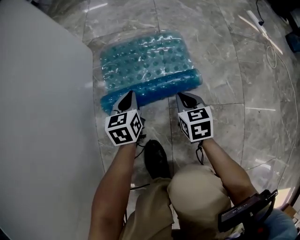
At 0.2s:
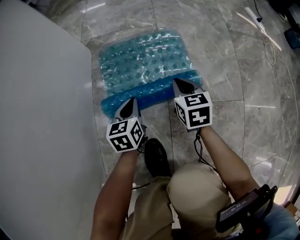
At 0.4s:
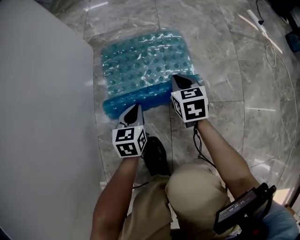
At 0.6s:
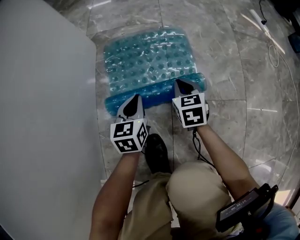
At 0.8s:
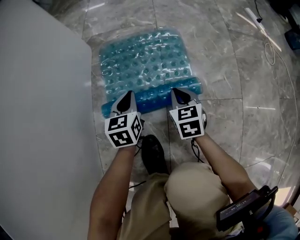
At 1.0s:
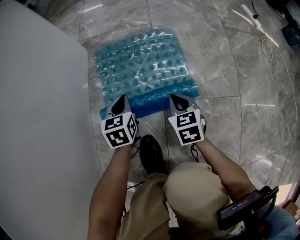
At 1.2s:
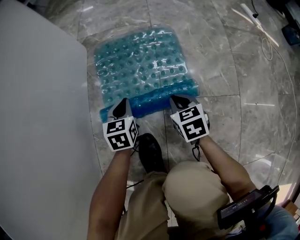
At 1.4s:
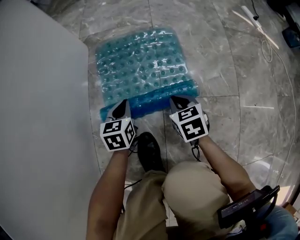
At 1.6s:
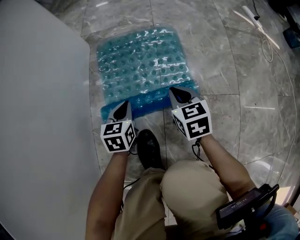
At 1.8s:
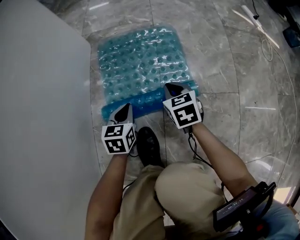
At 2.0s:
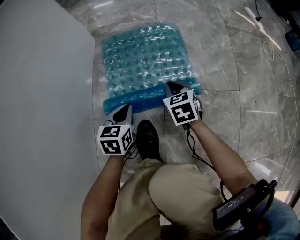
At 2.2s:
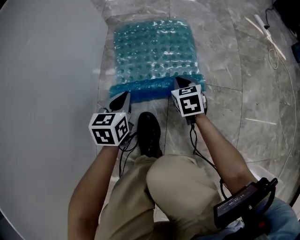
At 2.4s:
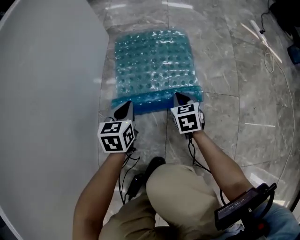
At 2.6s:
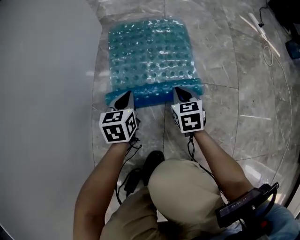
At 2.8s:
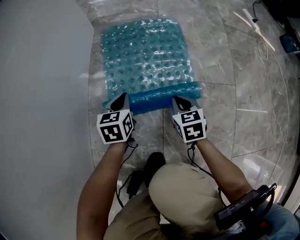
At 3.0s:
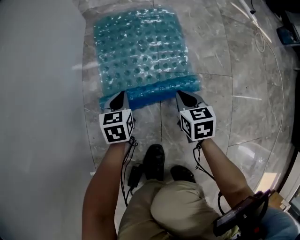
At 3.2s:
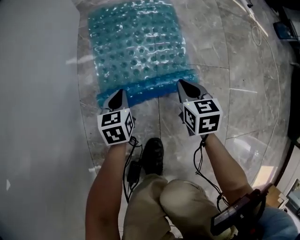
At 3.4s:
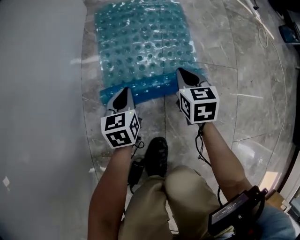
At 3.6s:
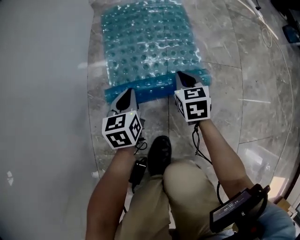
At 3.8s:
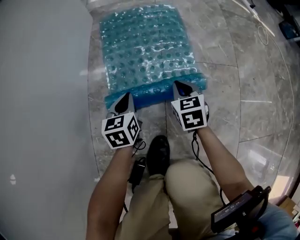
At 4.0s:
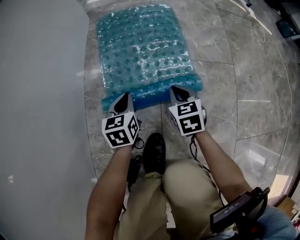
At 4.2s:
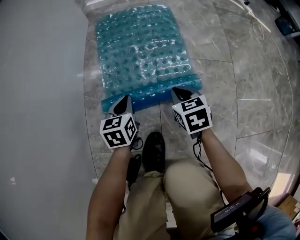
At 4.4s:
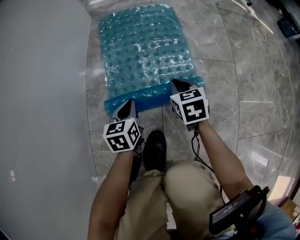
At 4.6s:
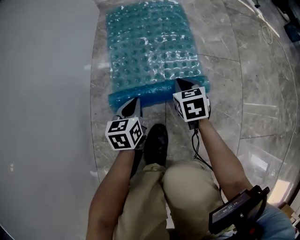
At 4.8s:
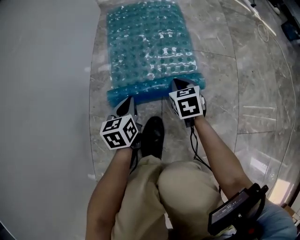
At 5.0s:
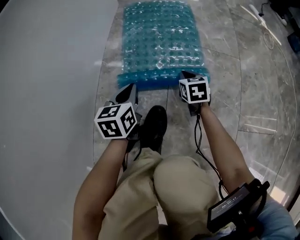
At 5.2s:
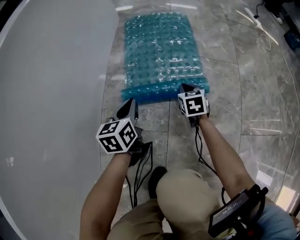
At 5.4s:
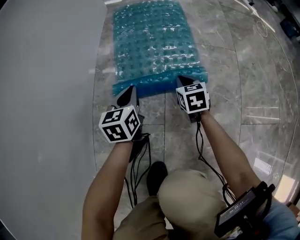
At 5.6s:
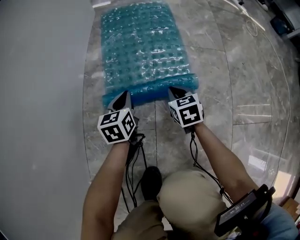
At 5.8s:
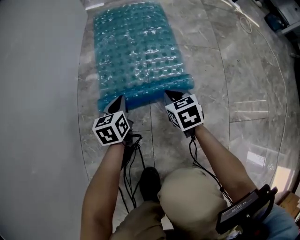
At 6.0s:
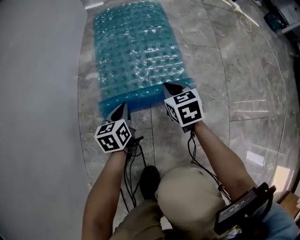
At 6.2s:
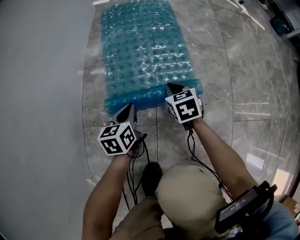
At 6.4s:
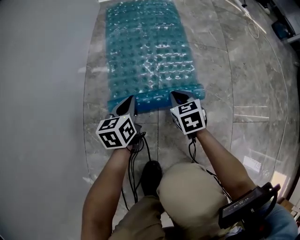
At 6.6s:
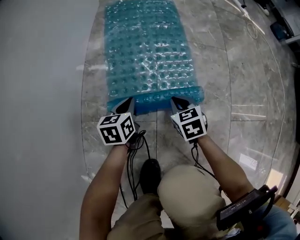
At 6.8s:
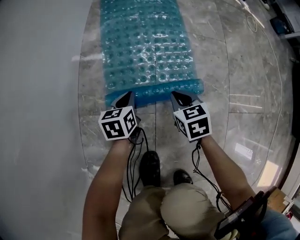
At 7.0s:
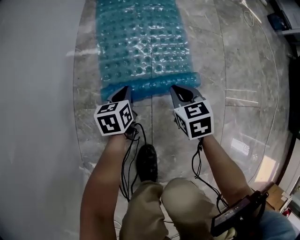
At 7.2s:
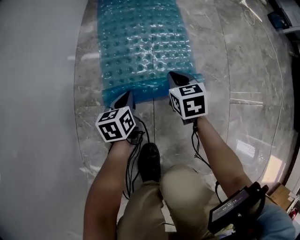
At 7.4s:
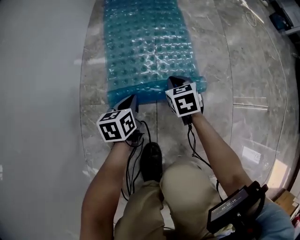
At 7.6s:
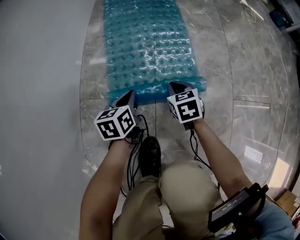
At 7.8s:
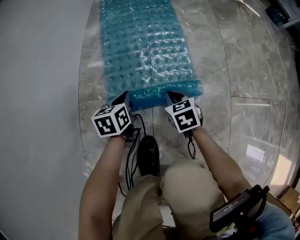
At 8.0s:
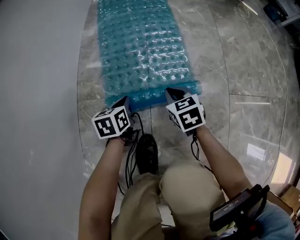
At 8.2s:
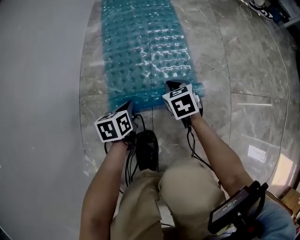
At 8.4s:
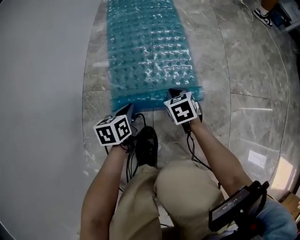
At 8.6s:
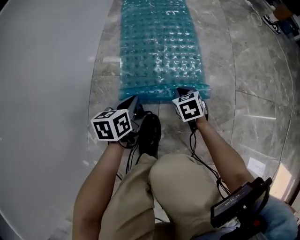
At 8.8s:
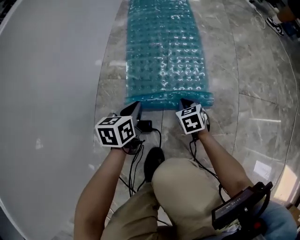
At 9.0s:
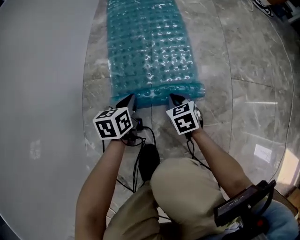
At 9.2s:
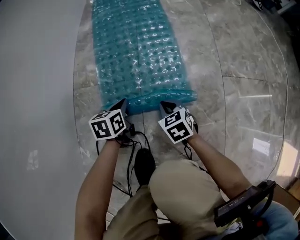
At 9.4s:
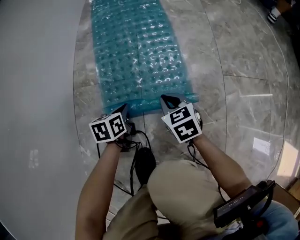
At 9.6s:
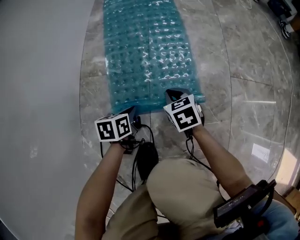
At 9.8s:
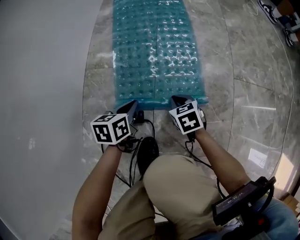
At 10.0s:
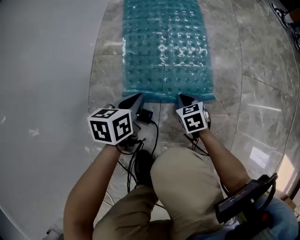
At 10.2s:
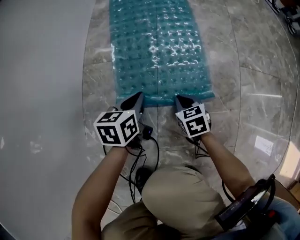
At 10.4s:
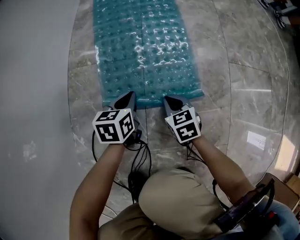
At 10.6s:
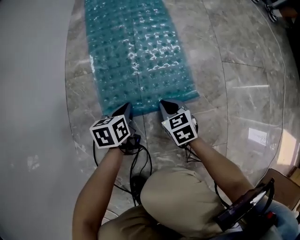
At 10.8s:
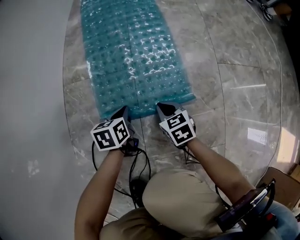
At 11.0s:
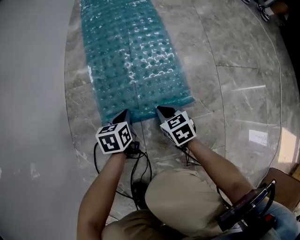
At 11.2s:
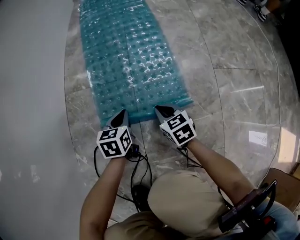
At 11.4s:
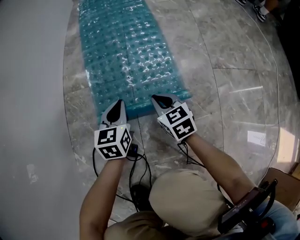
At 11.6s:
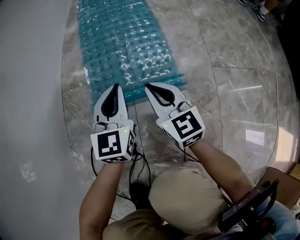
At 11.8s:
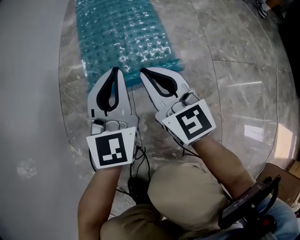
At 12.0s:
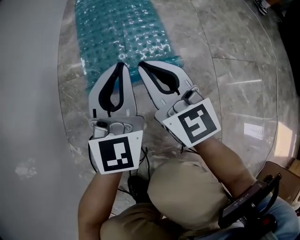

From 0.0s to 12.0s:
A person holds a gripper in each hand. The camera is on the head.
From 0.0s to 1.6s: The left gripper goes forward and backward, approximately 10 cm each way, reversing 2 times; the right gripper moves about 5 cm forward and comes back.
From 1.6s to 3.0s: The right gripper shifts approximately 10 cm backward, while the left gripper travels backward by approximately 5 cm.
From 3.0s to 4.4s: The left gripper travels backward by roughly 10 cm.
From 4.4s to 6.0s: The two grippers go approximately 10 cm backward.
From 6.0s to 7.6s: The grippers both shift backward by about 10 cm.
From 7.6s to 9.0s: Both grippers move backward, some 15 cm.
From 9.0s to 10.4s: The left gripper swings up and down, roughly 10 cm each way, with 2 reversals, while the right gripper goes roughly 5 cm backward.
From 10.4s to 12.0s: The grippers both shift upward by approximately 25 cm. The left gripper angles its fingers upward, by about 40 degrees. Meanwhile the right gripper points its fingers about 50 degrees further upward.

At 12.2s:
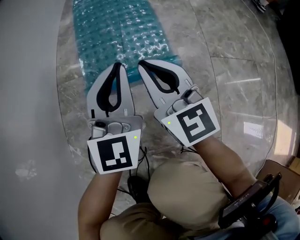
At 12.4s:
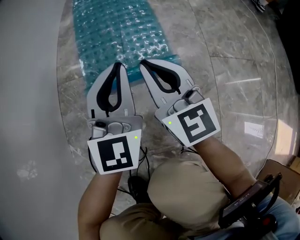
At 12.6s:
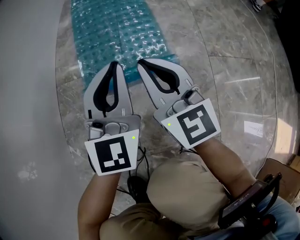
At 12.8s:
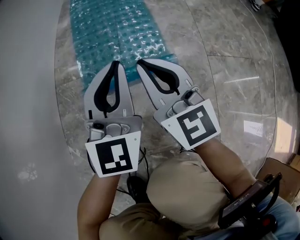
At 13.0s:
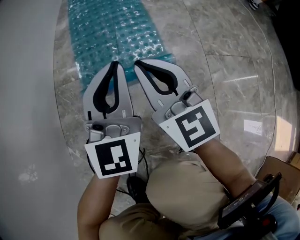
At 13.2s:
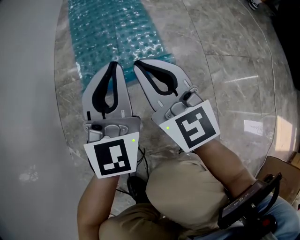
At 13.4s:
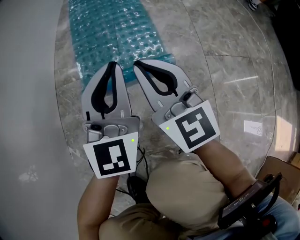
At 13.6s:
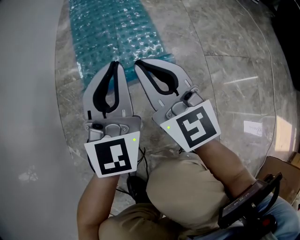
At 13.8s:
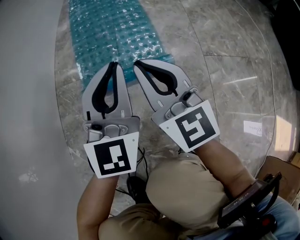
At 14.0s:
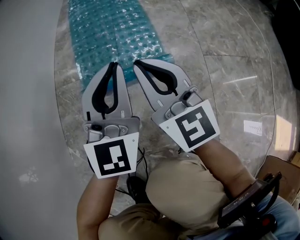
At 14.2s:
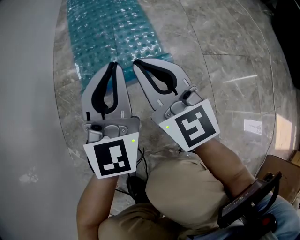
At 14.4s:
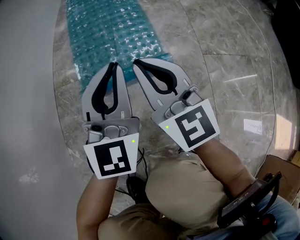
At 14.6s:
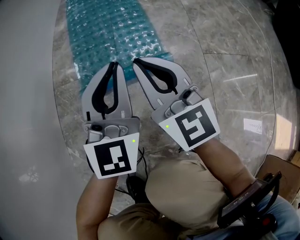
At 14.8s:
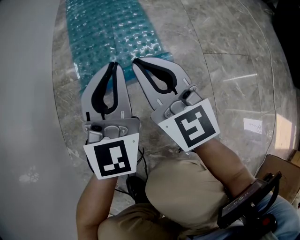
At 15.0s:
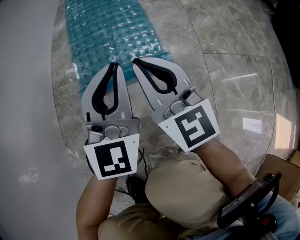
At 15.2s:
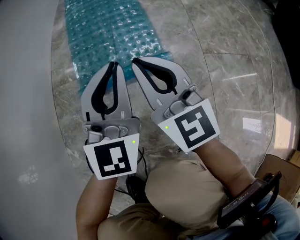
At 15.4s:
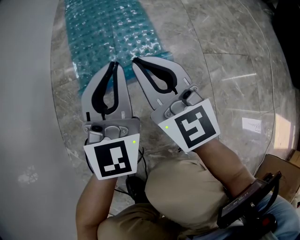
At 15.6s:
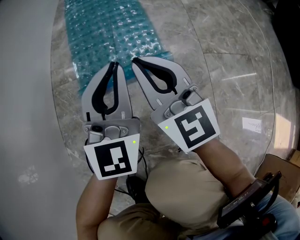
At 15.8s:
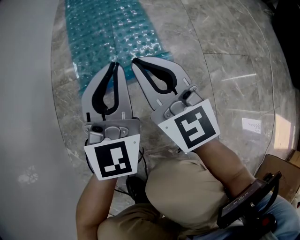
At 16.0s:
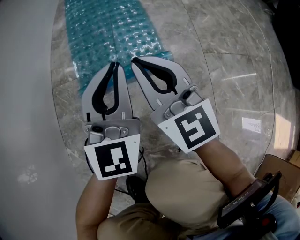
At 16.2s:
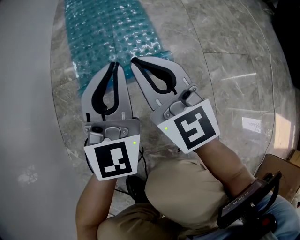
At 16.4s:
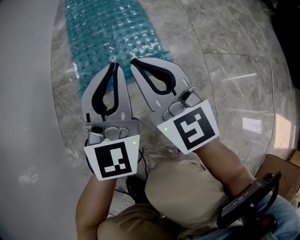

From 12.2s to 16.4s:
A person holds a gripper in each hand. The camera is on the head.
From 12.2s to 13.6s: The grippers make only small movements.
From 13.6s to 16.4s: The two grippers keep their place.

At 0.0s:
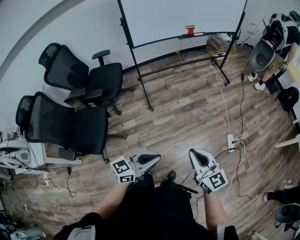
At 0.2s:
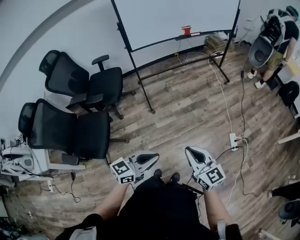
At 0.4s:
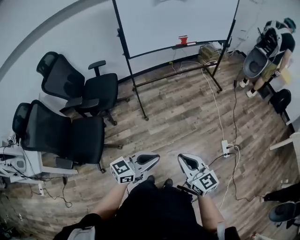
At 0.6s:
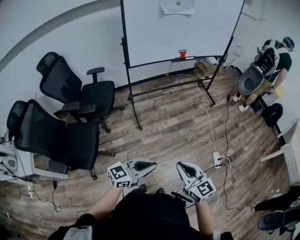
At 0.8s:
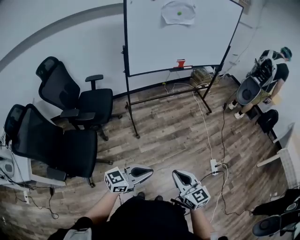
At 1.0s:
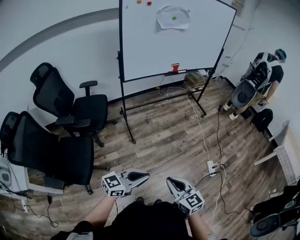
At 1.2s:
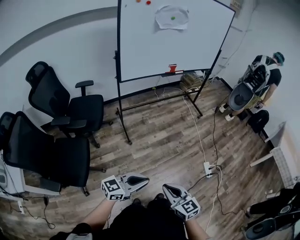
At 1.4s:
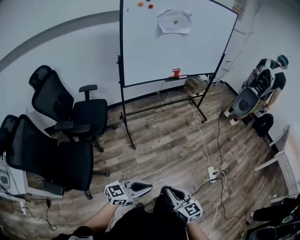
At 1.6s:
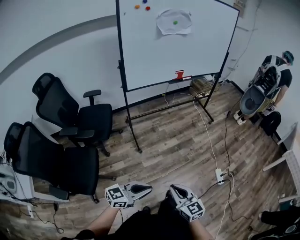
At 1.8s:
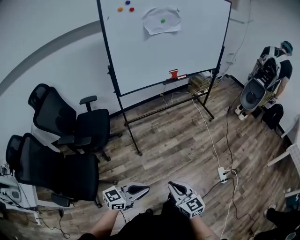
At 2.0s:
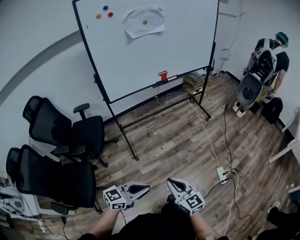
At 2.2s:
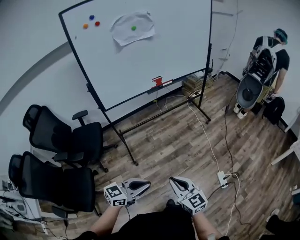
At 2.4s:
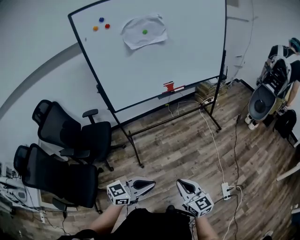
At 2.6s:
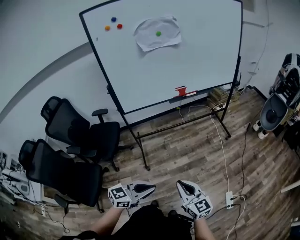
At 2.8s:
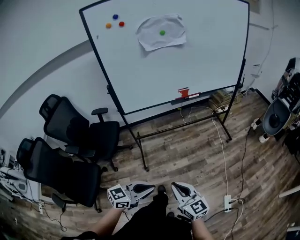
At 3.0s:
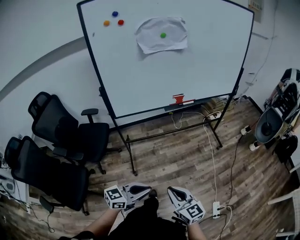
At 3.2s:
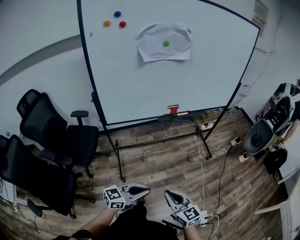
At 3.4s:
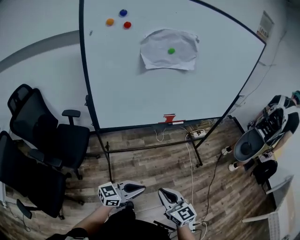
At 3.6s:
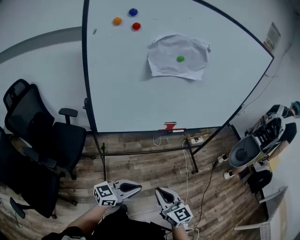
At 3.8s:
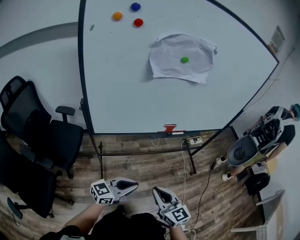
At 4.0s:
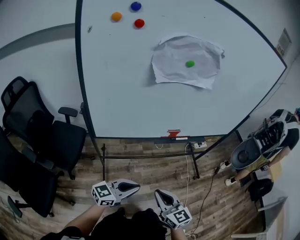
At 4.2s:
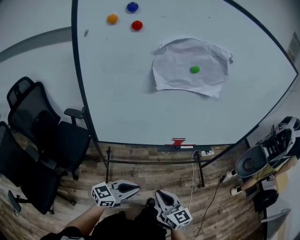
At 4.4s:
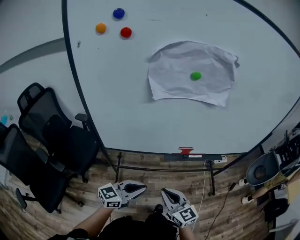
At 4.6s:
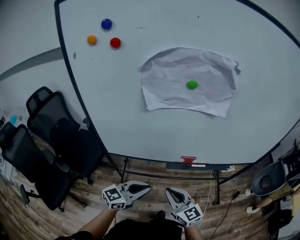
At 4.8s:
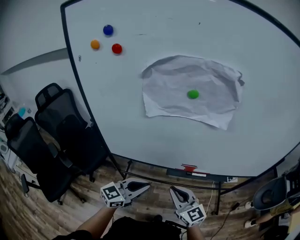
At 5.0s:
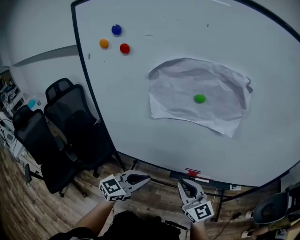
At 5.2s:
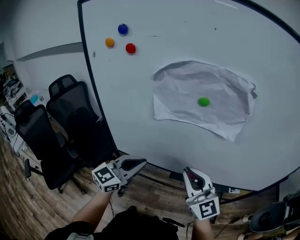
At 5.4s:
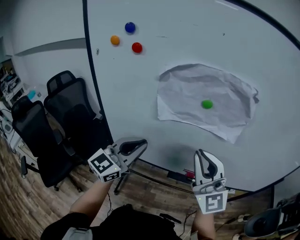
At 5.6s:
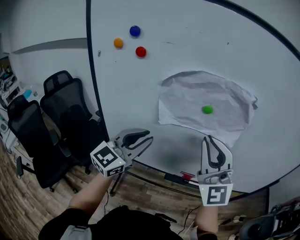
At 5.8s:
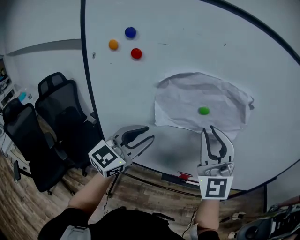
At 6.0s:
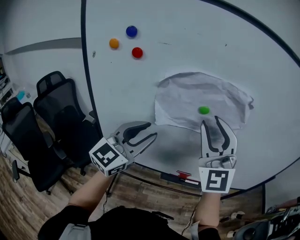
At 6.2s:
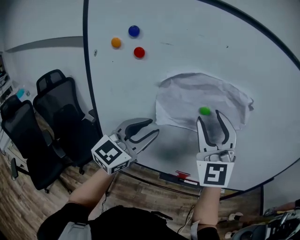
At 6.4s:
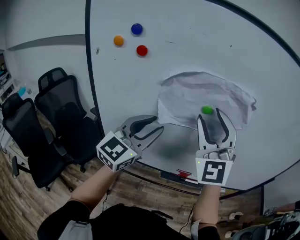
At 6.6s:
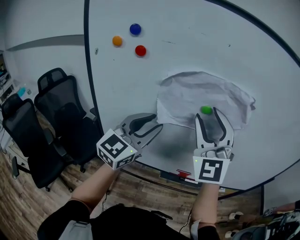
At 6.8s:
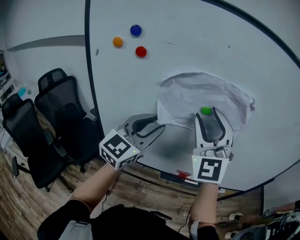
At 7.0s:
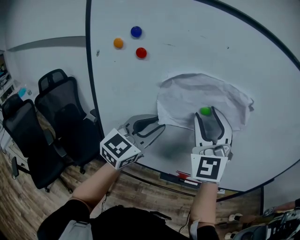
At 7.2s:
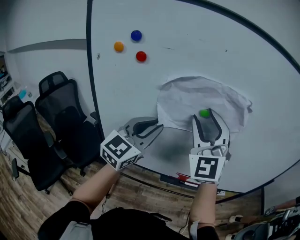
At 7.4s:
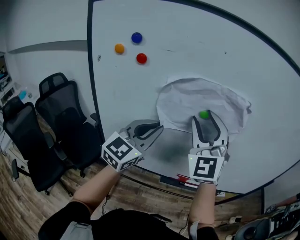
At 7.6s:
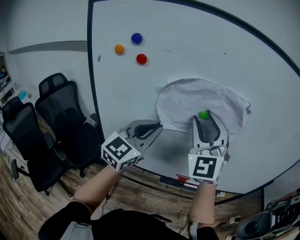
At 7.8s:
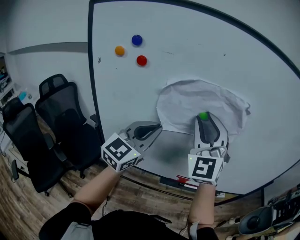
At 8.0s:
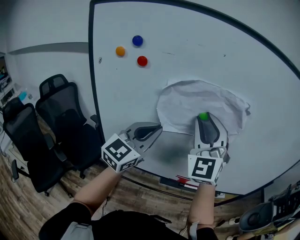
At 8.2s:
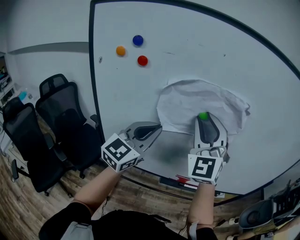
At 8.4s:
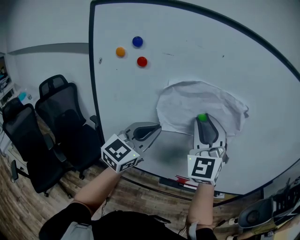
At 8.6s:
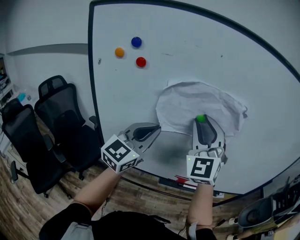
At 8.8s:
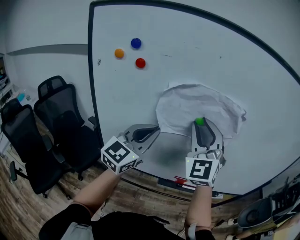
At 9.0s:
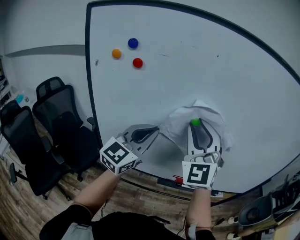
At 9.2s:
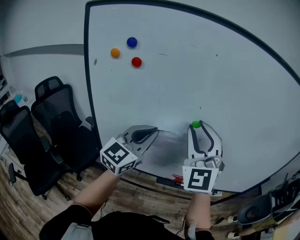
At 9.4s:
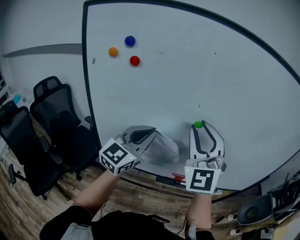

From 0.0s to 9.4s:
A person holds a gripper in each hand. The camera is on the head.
From 0.0s to 1.6s: The left gripper heads to the left, covering about 5 cm; the right gripper travels to the left by approximately 10 cm.
From 1.6s to 3.2s: The two grippers travel together, forward, roughly 40 cm.
From 3.2s to 4.8s: The left gripper shifts by approximately 40 cm, and turns by about 30 degrees. The right gripper ends up approximately 40 cm from where it was, and turns by approximately 30 degrees.
From 4.8s to 6.2s: The left gripper shifts about 30 cm upward and forward, swivels roughly 30 degrees, and opens up. The right gripper moves upward, approximately 35 cm, rolls counterclockwise, seen from behind, by roughly 40 degrees, and opens.
From 6.2s to 7.8s: The left gripper closes its fingers.
From 7.8s to 9.4s: The grippers move only a little.
